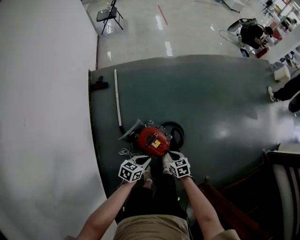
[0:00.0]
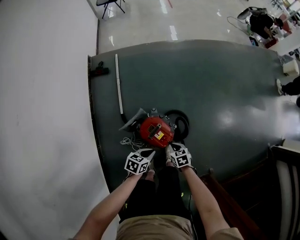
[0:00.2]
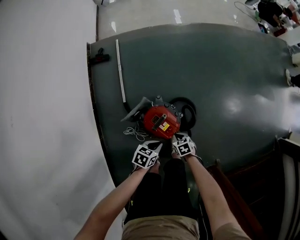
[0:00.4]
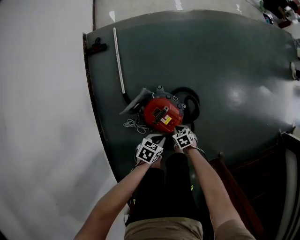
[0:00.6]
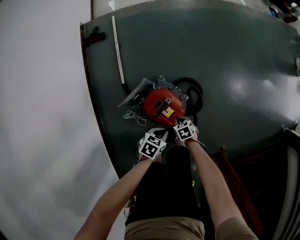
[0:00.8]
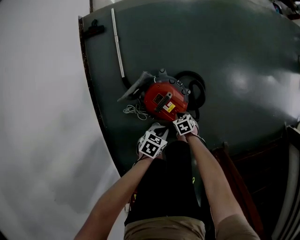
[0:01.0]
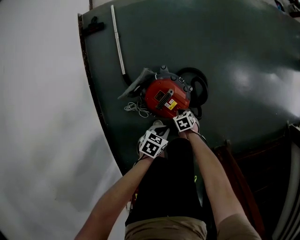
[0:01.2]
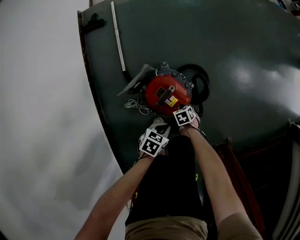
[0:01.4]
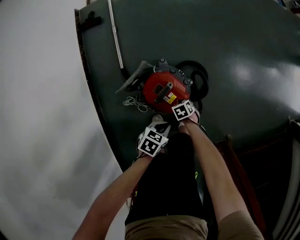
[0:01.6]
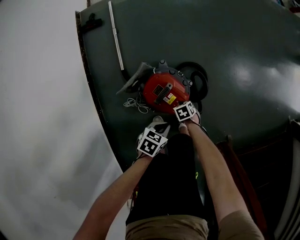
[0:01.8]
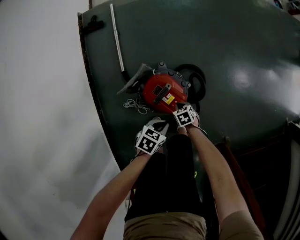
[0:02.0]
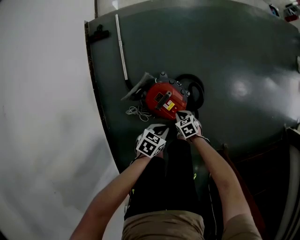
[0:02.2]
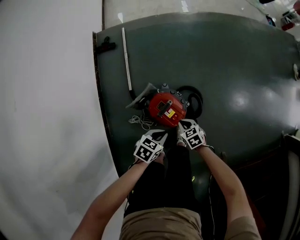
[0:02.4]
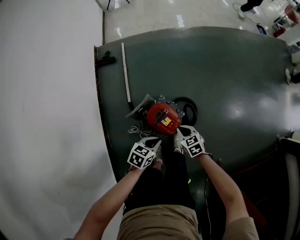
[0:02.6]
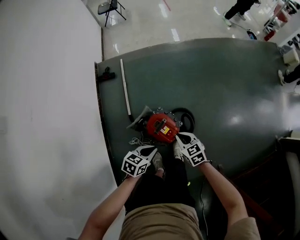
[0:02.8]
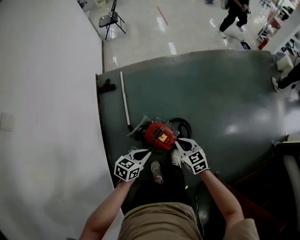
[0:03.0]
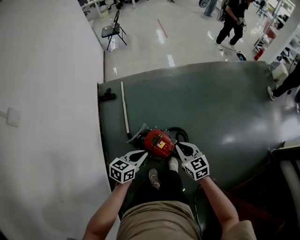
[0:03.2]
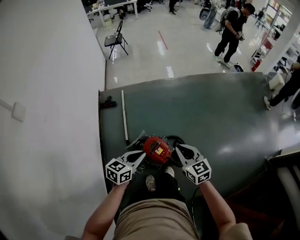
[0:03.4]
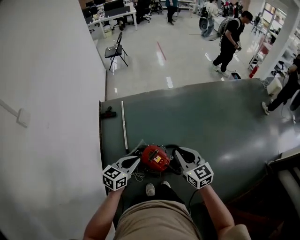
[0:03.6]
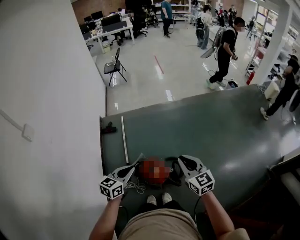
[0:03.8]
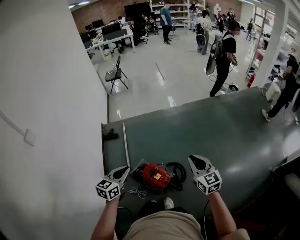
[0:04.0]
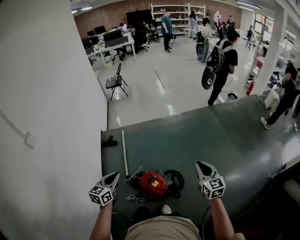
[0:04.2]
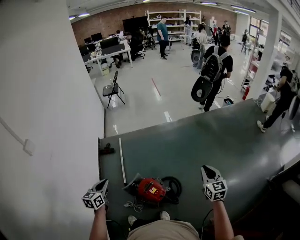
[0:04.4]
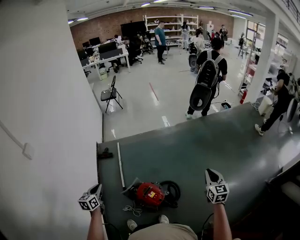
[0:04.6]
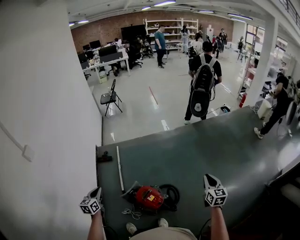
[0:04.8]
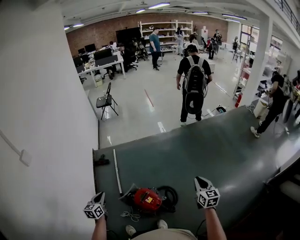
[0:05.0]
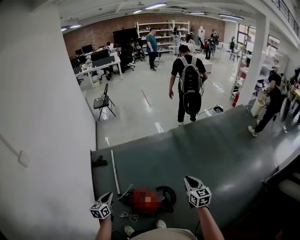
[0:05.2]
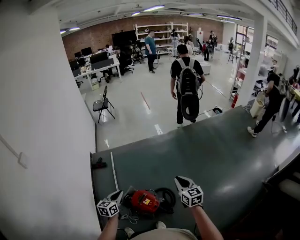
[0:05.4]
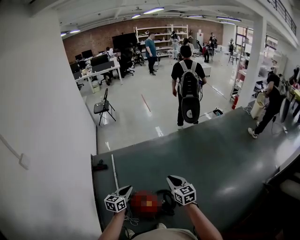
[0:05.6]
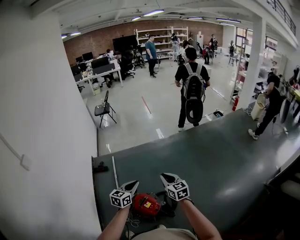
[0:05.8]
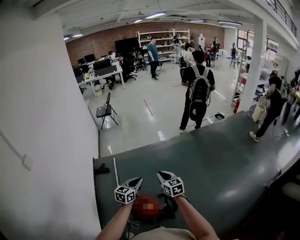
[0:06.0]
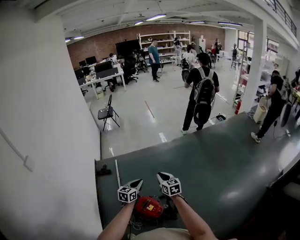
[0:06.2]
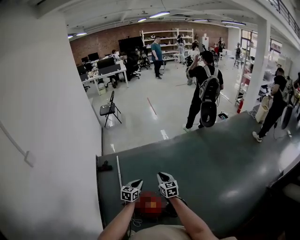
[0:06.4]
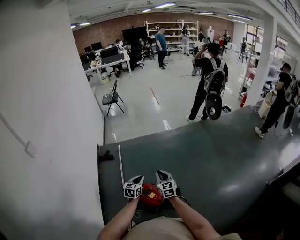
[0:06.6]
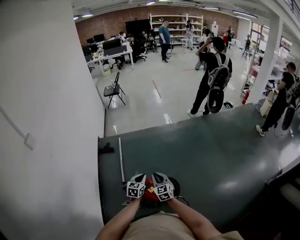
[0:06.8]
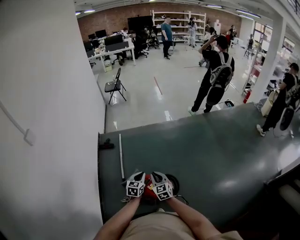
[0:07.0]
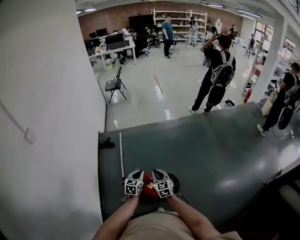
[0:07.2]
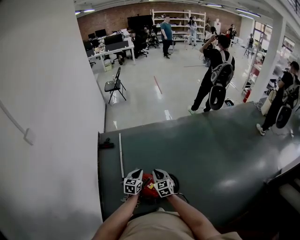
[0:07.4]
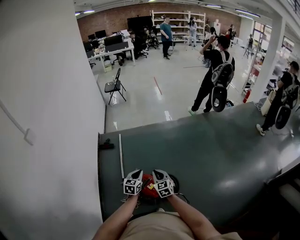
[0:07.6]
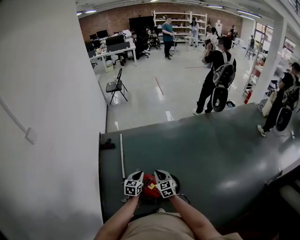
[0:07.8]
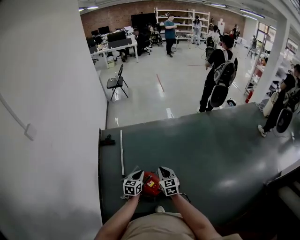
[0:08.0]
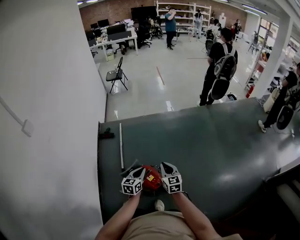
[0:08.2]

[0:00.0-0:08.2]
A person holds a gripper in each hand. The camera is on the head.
0:00.0 to 0:01.6: Both grippers travel together downward, approximately 30 cm. The right gripper changes its angle by some 30 degrees.
0:01.6 to 0:03.2: Both grippers move upward, roughly 50 cm. The left gripper rotates roughly 30 degrees. Meanwhile the right gripper points its fingers roughly 50 degrees further upward.
0:03.2 to 0:05.0: The left gripper travels to the left and upward by roughly 15 cm, and rotates approximately 30 degrees. The right gripper moves to the right and upward, about 30 cm, and changes its angle by approximately 30 degrees.
0:05.0 to 0:06.6: The left gripper heads to the right and forward, covering about 25 cm, while the right gripper moves to the left, approximately 25 cm.
0:06.6 to 0:08.2: The left gripper moves backward, approximately 5 cm.

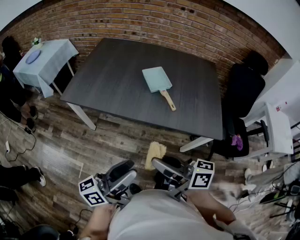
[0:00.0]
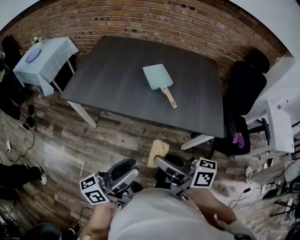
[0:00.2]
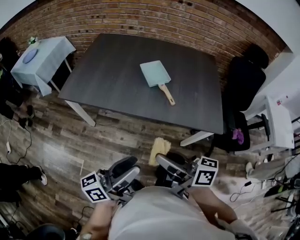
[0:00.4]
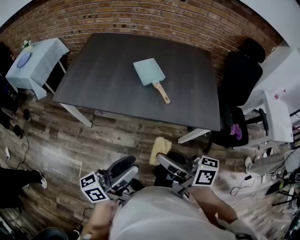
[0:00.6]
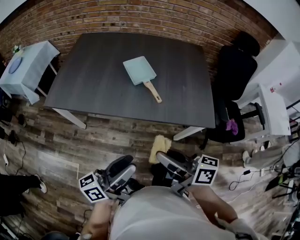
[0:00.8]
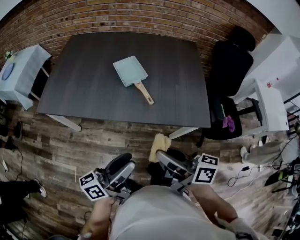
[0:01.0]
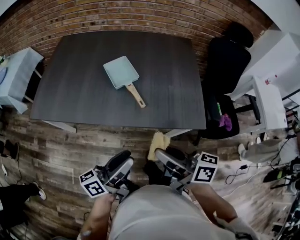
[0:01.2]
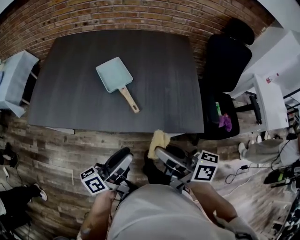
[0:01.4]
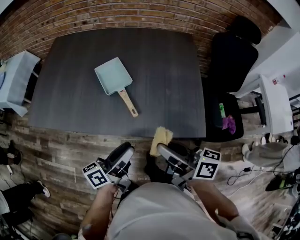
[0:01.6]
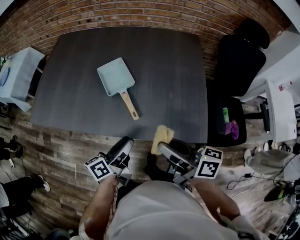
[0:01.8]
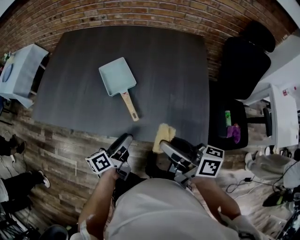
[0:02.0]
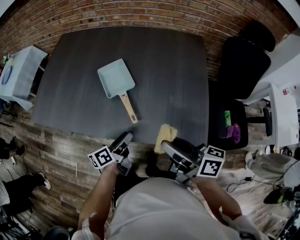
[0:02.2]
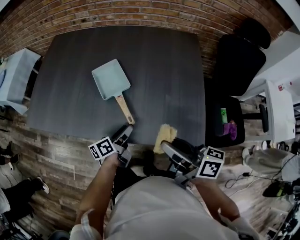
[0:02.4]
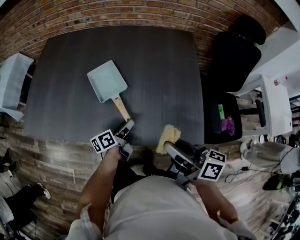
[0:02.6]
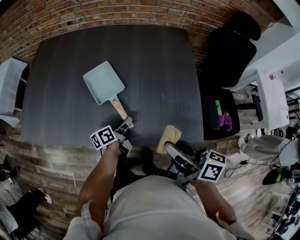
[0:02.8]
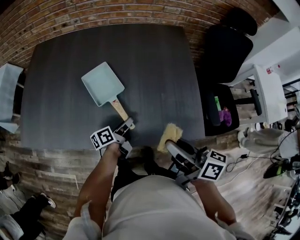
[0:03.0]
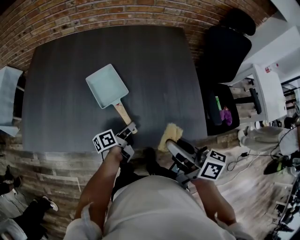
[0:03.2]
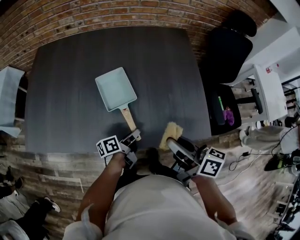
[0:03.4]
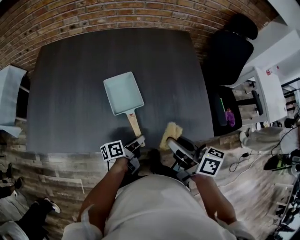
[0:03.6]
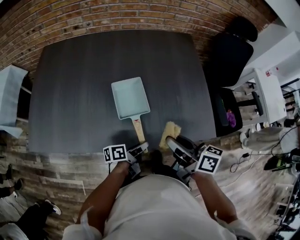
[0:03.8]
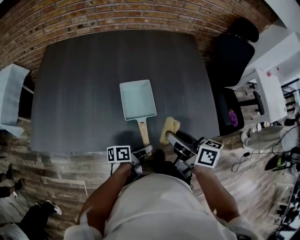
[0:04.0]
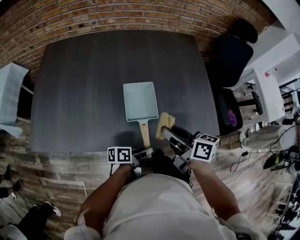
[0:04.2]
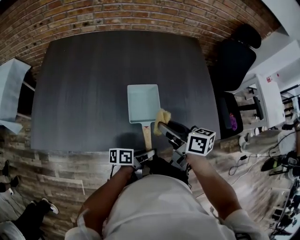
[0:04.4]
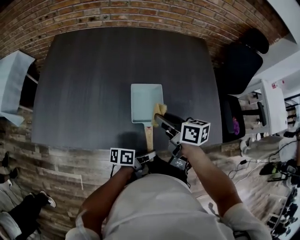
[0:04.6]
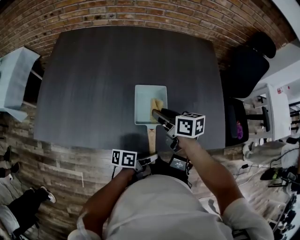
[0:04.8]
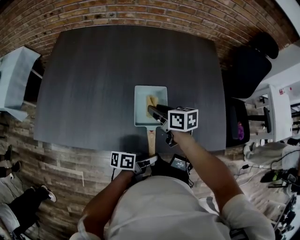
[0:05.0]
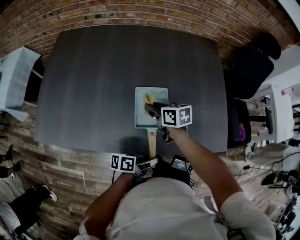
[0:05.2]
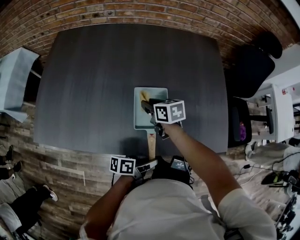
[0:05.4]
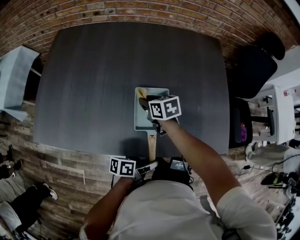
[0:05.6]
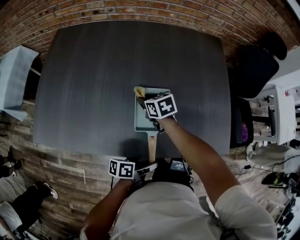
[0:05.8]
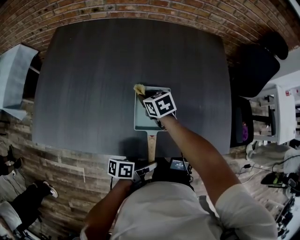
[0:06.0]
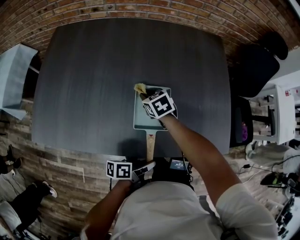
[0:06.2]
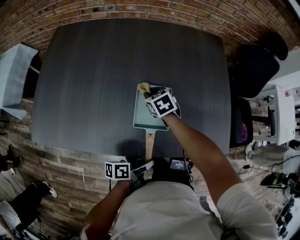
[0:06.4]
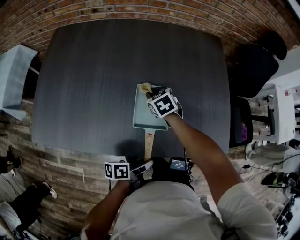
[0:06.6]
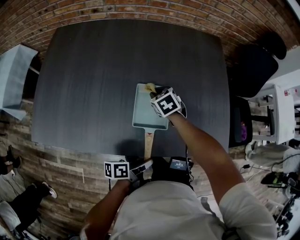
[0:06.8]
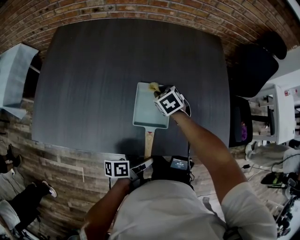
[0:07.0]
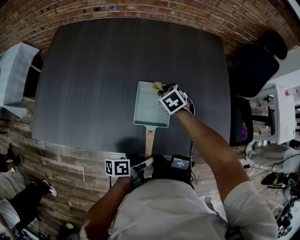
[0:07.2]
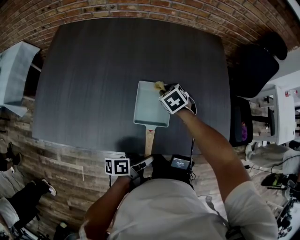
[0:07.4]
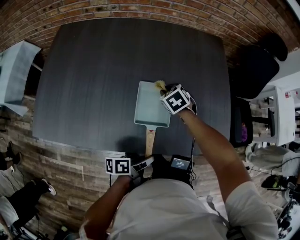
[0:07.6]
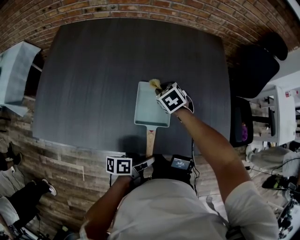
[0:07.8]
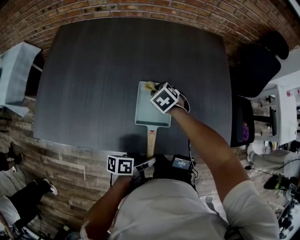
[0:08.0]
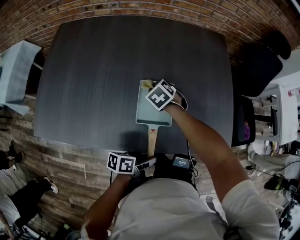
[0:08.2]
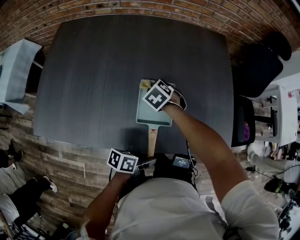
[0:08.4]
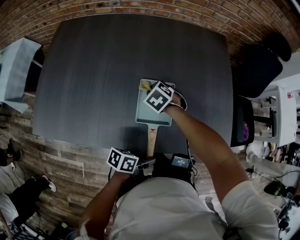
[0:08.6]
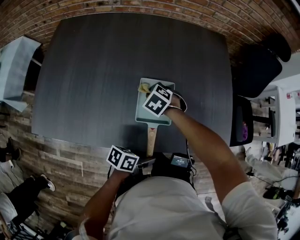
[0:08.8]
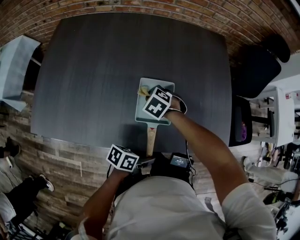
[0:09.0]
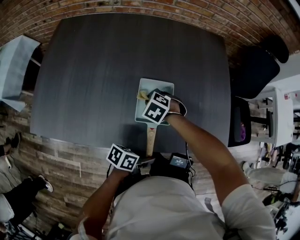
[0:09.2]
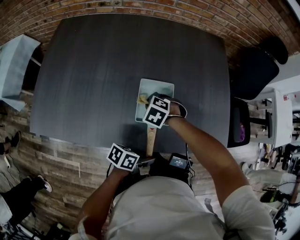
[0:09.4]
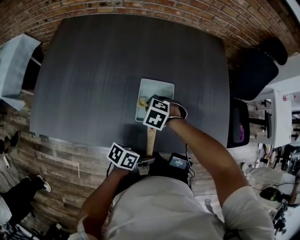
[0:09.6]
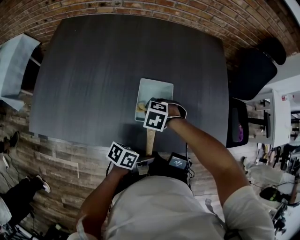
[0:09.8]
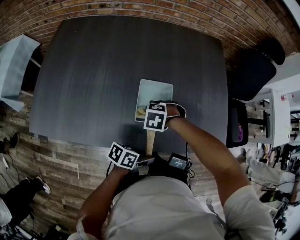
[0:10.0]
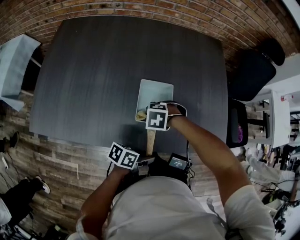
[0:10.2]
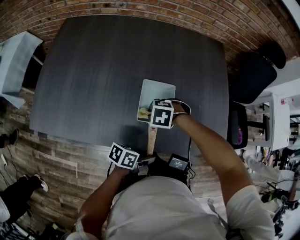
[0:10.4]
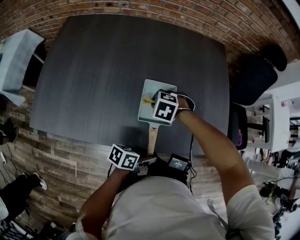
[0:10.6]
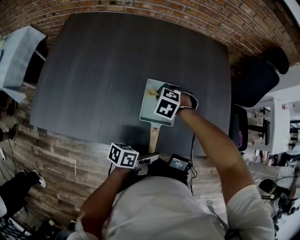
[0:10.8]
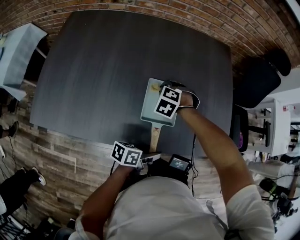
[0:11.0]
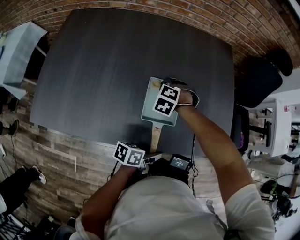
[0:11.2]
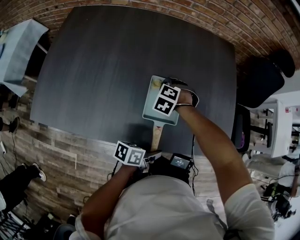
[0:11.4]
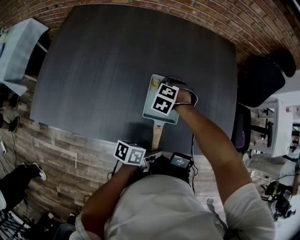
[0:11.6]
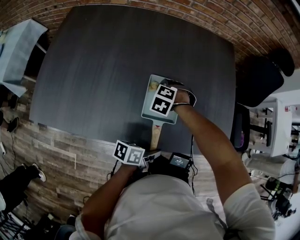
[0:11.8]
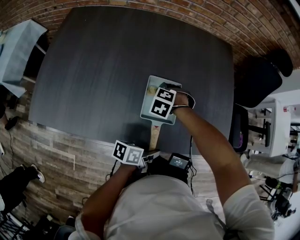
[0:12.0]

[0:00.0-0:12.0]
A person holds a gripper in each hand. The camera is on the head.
0:00.0 to 0:01.6: The right gripper shifts by approximately 25 cm.
0:01.6 to 0:03.0: The right gripper ends up approximately 5 cm from where it was.
0:03.0 to 0:04.4: The right gripper ends up about 20 cm from where it was.
0:04.4 to 0:06.0: The right gripper ends up approximately 25 cm from where it was, and turns by roughly 40 degrees.
0:06.0 to 0:07.6: The right gripper ends up some 10 cm from where it was, and swivels some 30 degrees.
0:07.6 to 0:09.0: The right gripper ends up roughly 10 cm from where it was, and swivels about 20 degrees.
0:09.0 to 0:10.4: The right gripper moves roughly 10 cm, and changes its angle by some 30 degrees.
0:10.4 to 0:12.0: The right gripper shifts by roughly 10 cm, and rotates approximately 20 degrees.

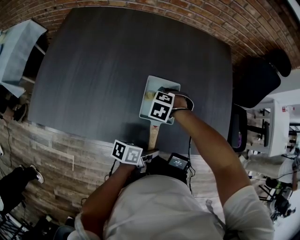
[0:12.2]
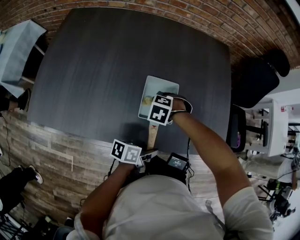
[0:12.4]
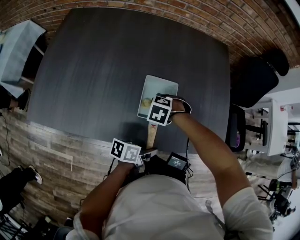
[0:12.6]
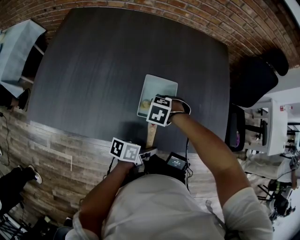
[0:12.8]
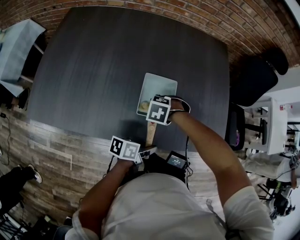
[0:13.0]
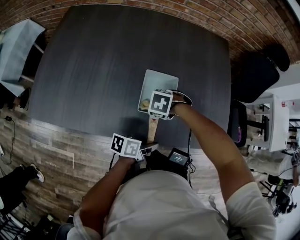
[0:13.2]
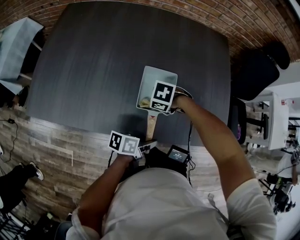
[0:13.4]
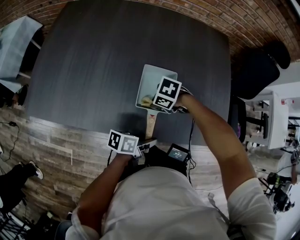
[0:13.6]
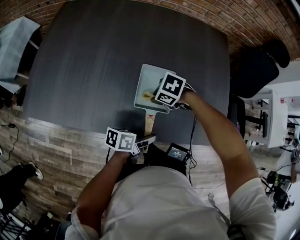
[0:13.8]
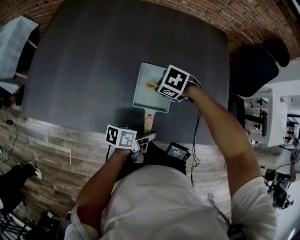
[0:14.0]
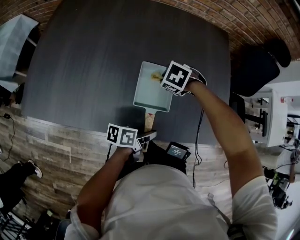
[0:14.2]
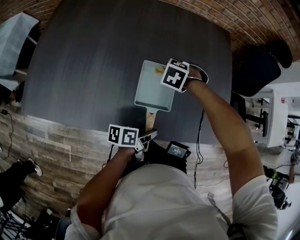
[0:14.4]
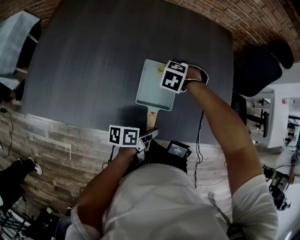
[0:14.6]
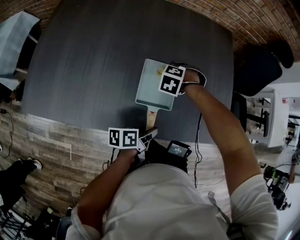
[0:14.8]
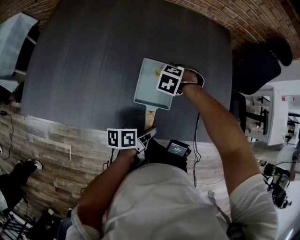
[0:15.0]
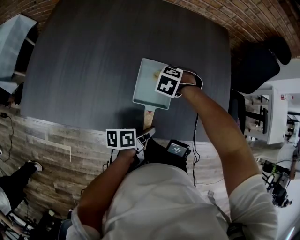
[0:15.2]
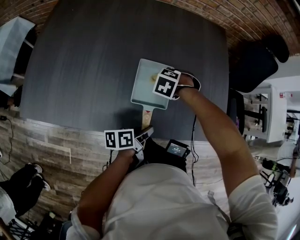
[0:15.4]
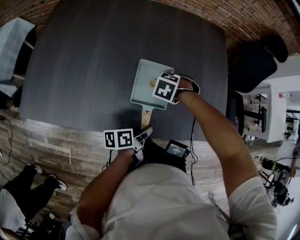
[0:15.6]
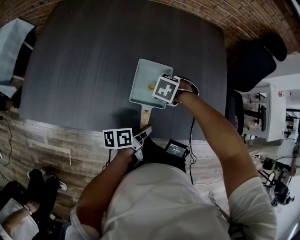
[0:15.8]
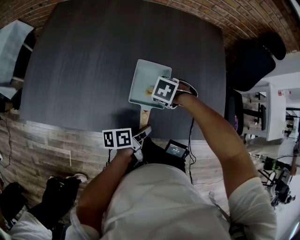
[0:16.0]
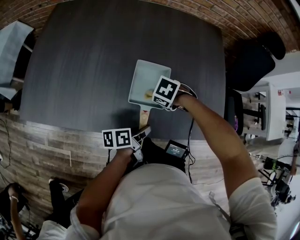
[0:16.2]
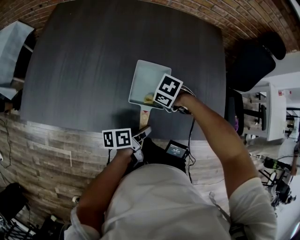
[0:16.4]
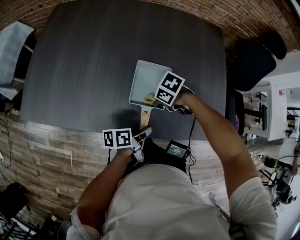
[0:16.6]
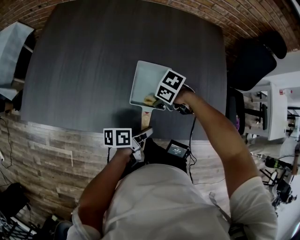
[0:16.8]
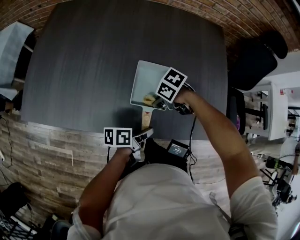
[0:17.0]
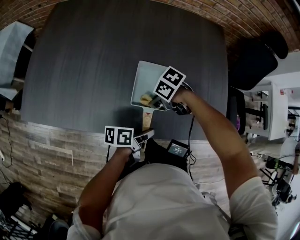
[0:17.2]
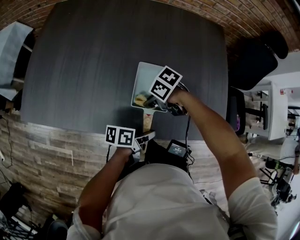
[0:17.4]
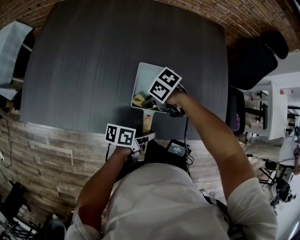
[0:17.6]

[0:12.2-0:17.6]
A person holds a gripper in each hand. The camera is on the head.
0:12.2 to 0:13.6: The right gripper changes place by approximately 10 cm, and rotates some 40 degrees.
0:13.6 to 0:15.0: The right gripper moves approximately 15 cm, and rotates about 40 degrees.
0:15.0 to 0:16.2: The right gripper shifts by roughly 10 cm, and swivels about 30 degrees.
0:16.2 to 0:17.6: The right gripper changes place by approximately 5 cm, and rotates about 40 degrees.
